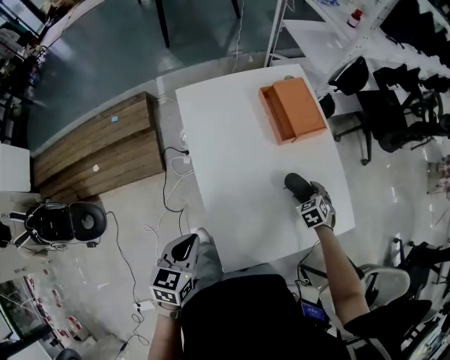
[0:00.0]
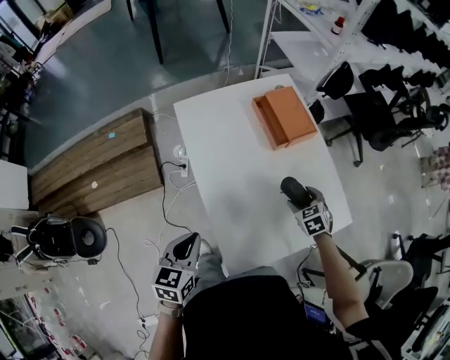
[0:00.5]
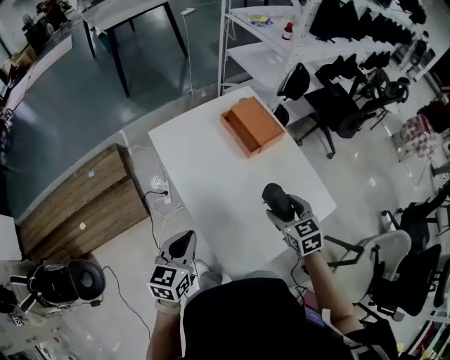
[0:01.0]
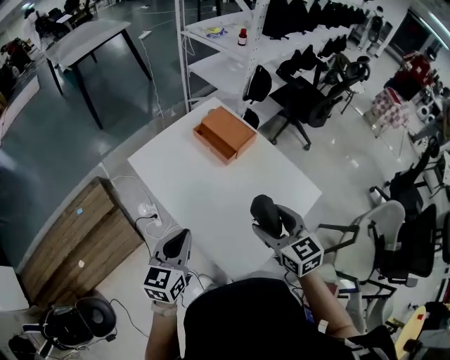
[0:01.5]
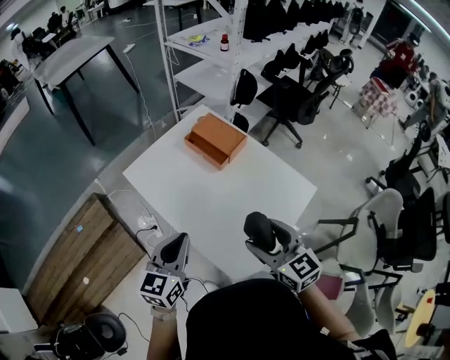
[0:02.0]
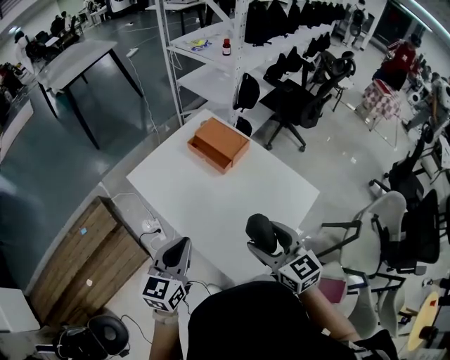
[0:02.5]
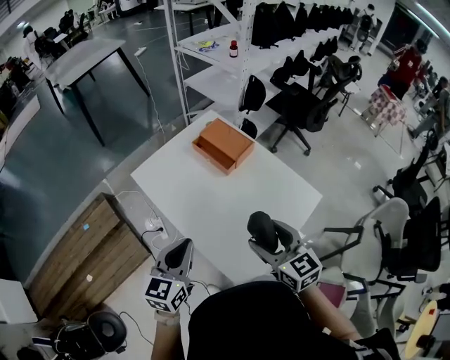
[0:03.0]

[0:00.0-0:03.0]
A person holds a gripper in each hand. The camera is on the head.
0:00.0 to 0:01.5: The right gripper moves upward, backward and to the left, about 35 cm, and angles its fingers upward, by about 40 degrees, while the left gripper shifts some 10 cm upward and forward, and swivels some 30 degrees.
0:01.5 to 0:03.0: There are only small adjustments of the grippers.

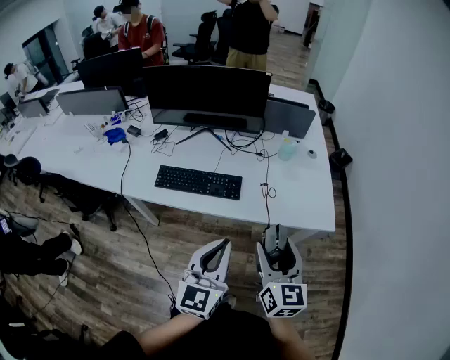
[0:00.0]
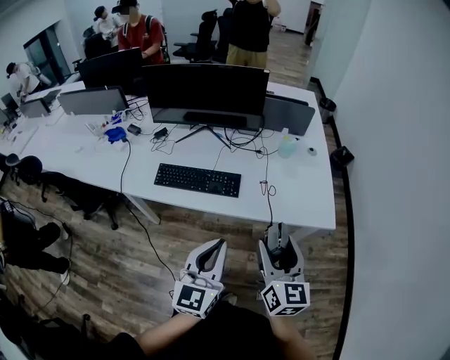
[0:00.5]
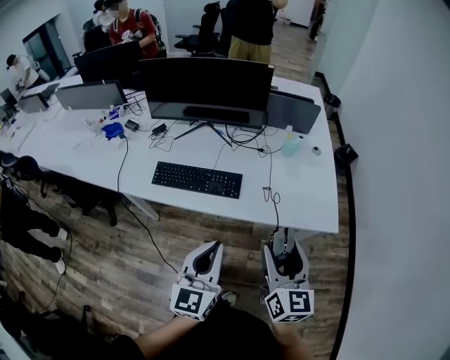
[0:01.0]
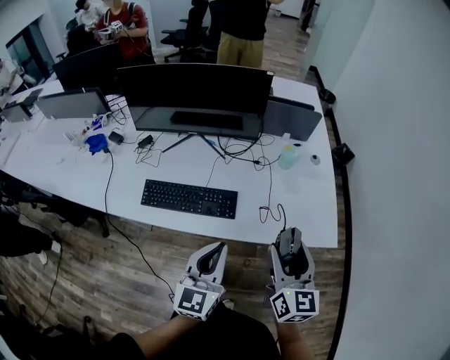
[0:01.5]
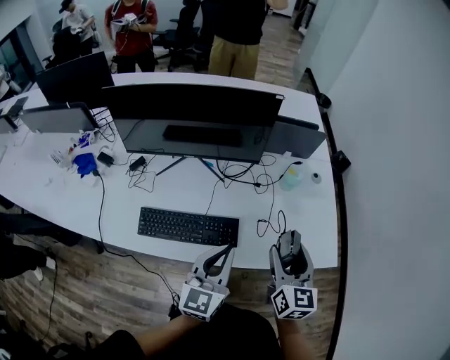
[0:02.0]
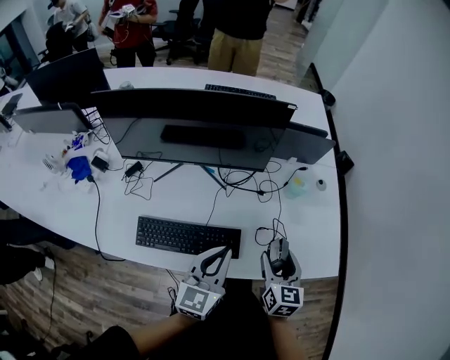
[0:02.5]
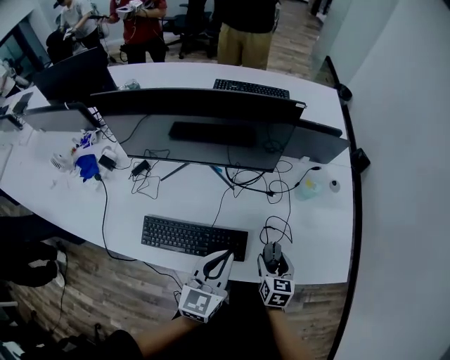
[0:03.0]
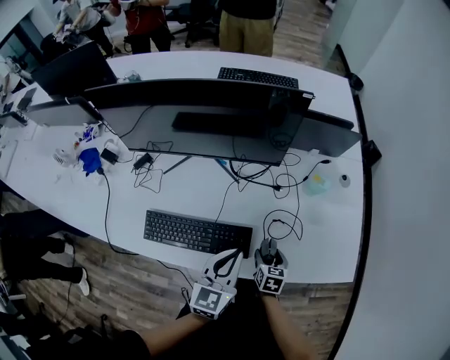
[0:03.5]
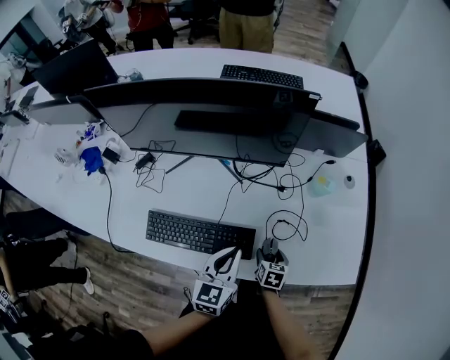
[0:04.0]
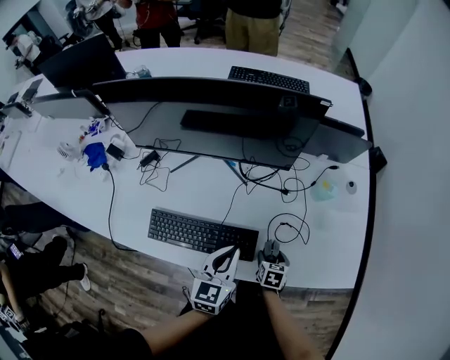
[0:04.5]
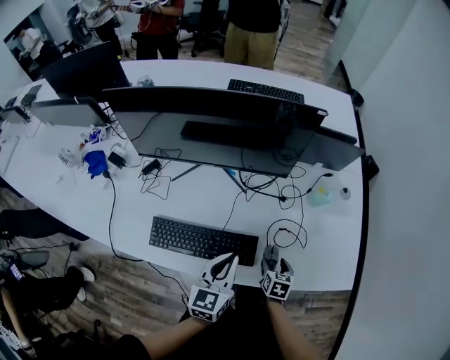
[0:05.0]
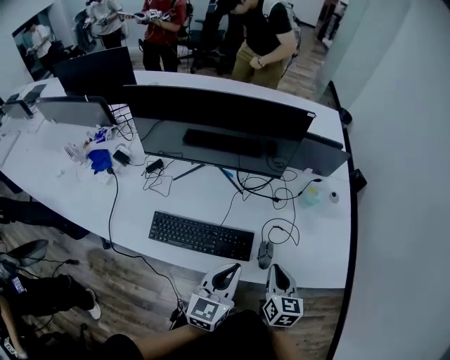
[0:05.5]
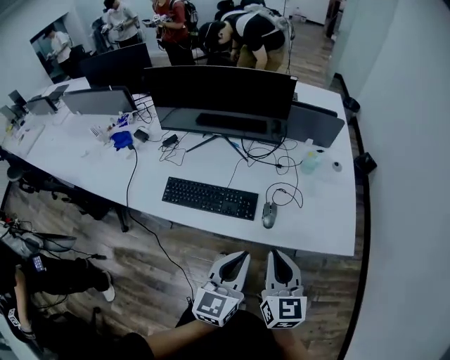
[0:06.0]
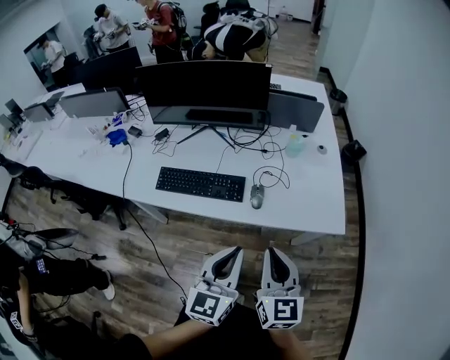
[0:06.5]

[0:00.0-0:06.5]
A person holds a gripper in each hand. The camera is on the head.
0:00.0 to 0:02.0: Both grippers move forward, about 25 cm.
0:02.0 to 0:04.5: The right gripper is displaced downward by roughly 35 cm, and points its fingers about 50 degrees further downward, while the left gripper is displaced downward and forward by about 15 cm.
0:04.5 to 0:06.5: The right gripper shifts approximately 50 cm upward and backward, points its fingers approximately 50 degrees further upward, and closes up; the left gripper travels backward and upward by some 35 cm.

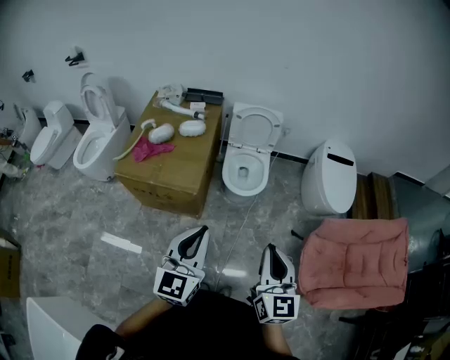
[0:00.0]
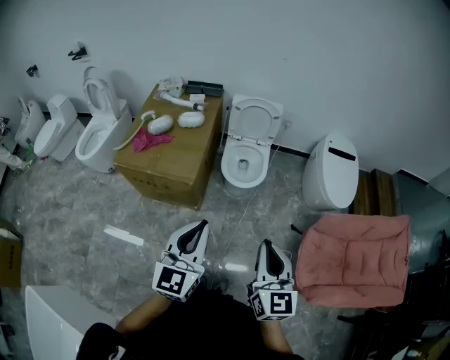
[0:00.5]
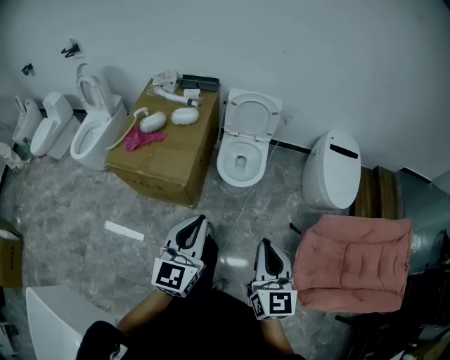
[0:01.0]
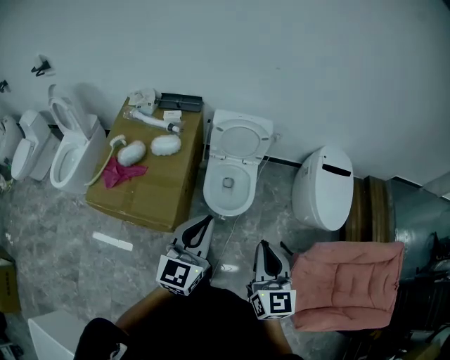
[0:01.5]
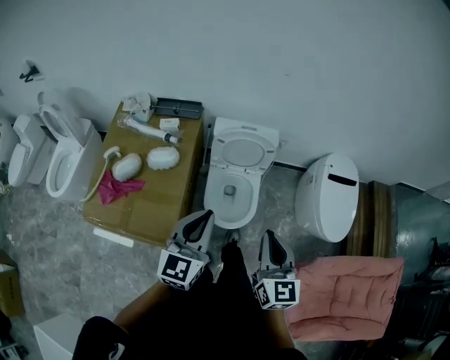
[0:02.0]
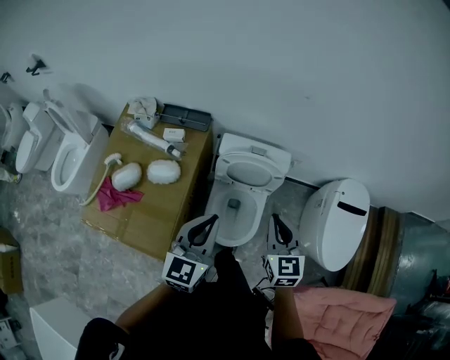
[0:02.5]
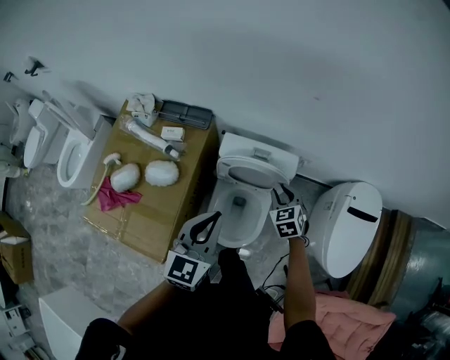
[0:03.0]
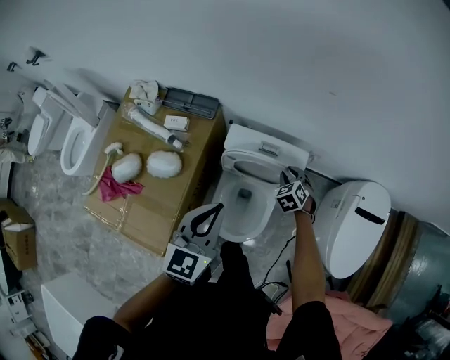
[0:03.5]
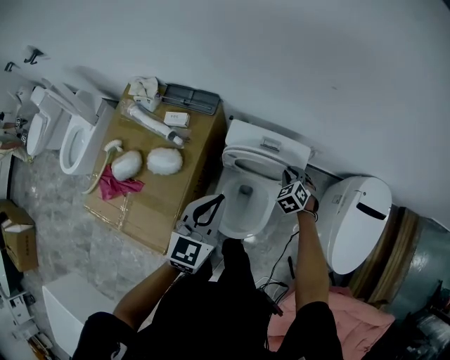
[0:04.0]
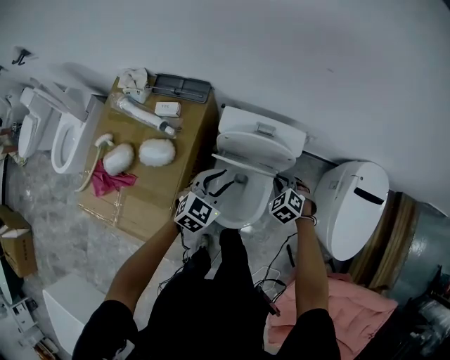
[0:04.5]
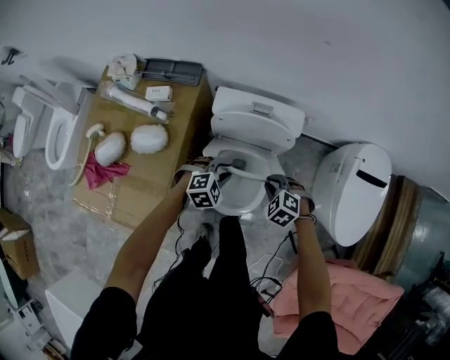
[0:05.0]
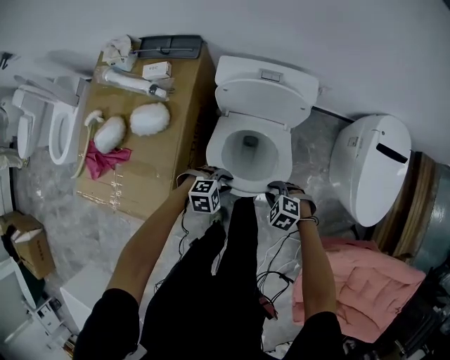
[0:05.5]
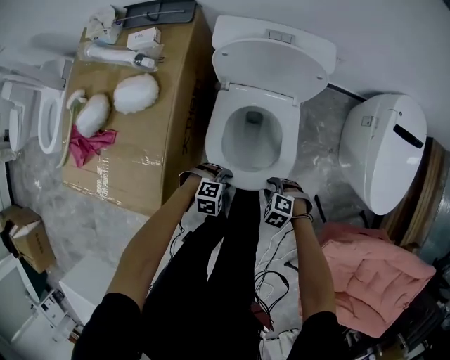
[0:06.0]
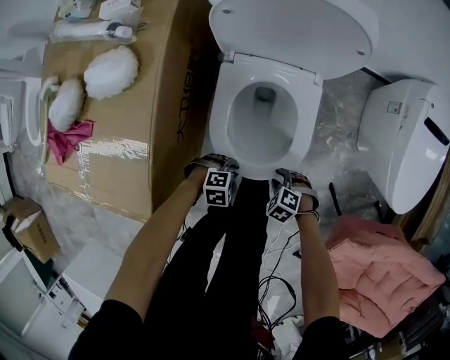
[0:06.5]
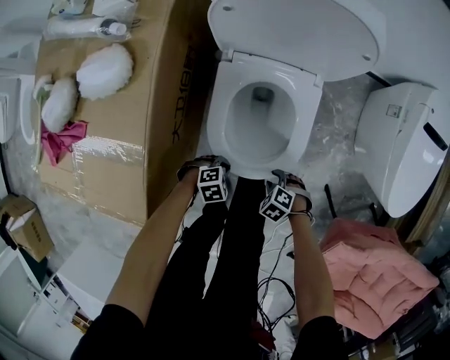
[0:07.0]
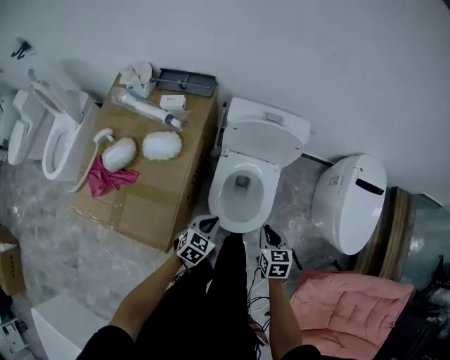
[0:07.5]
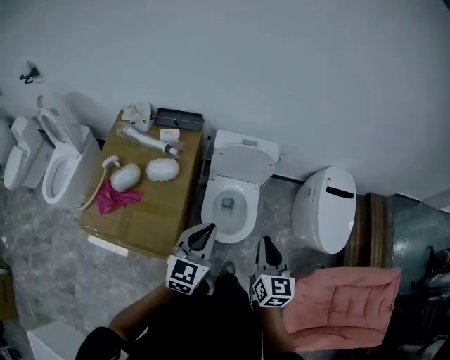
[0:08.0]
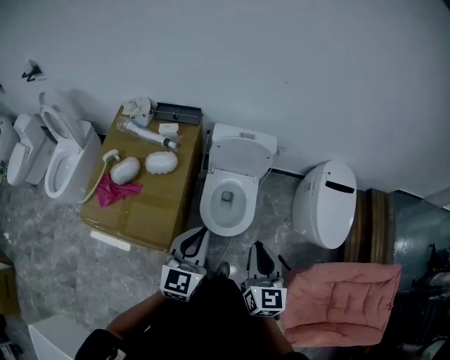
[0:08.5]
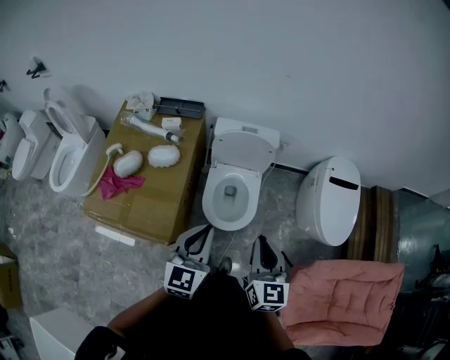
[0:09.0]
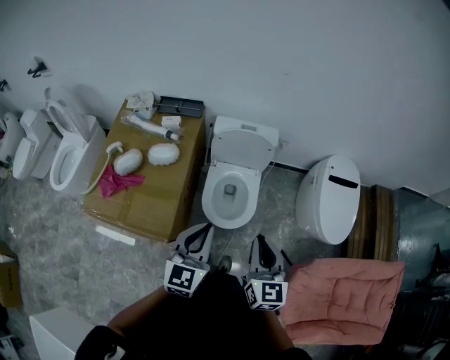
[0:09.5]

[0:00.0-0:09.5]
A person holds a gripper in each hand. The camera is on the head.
0:00.0 to 0:02.0: Both grippers are carried forward, about 40 cm.
0:02.0 to 0:04.0: The left gripper shifts approximately 30 cm forward and downward. The right gripper shifts some 50 cm forward and downward, and tips its fingers downward by approximately 50 degrees.
0:04.0 to 0:05.5: The left gripper goes approximately 35 cm downward, tilts its fingers roughly 40 degrees downward, and opens; the right gripper changes place by about 35 cm, and rotates some 30 degrees.
0:05.5 to 0:07.5: The right gripper moves some 30 cm downward and comes back, and twists approximately 60 degrees clockwise, seen from behind. Meanwhile the left gripper moves roughly 30 cm downward and comes back, turns by some 50 degrees, and closes its fingers.
0:07.5 to 0:09.5: The left gripper travels upward by about 35 cm, and points its fingers approximately 30 degrees further upward. Meanwhile the right gripper shifts about 35 cm upward and backward, and tips its fingers upward by roughly 30 degrees.

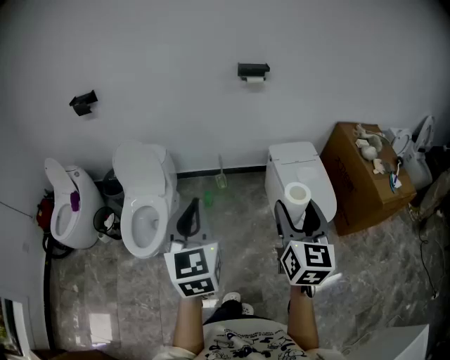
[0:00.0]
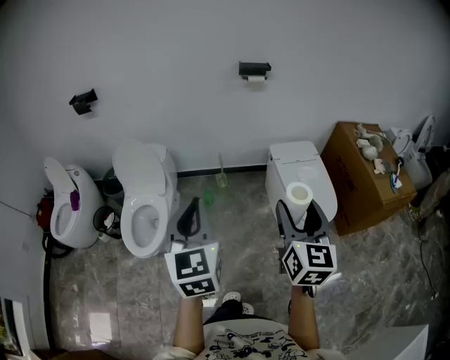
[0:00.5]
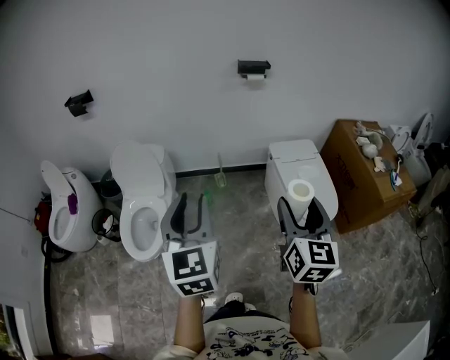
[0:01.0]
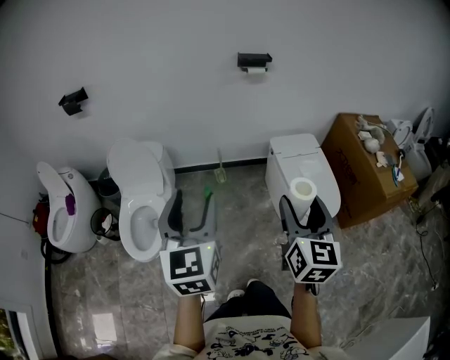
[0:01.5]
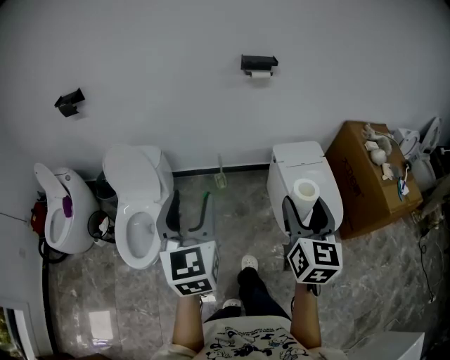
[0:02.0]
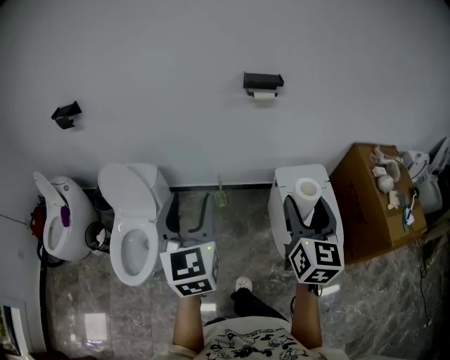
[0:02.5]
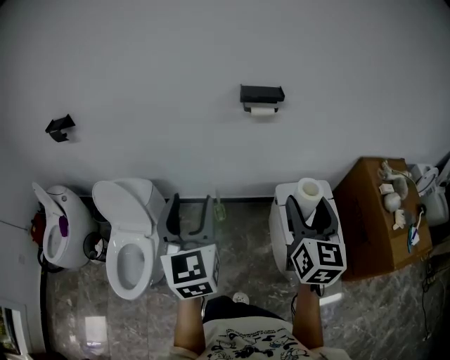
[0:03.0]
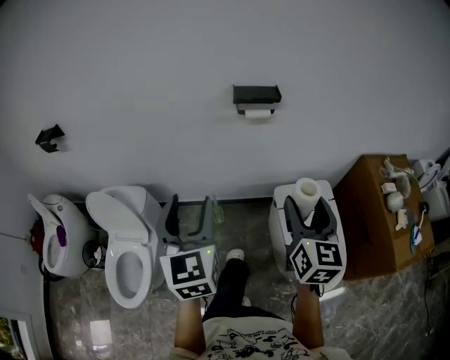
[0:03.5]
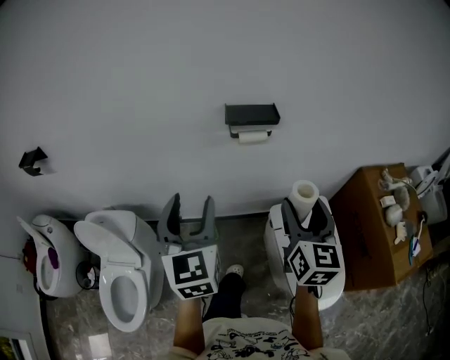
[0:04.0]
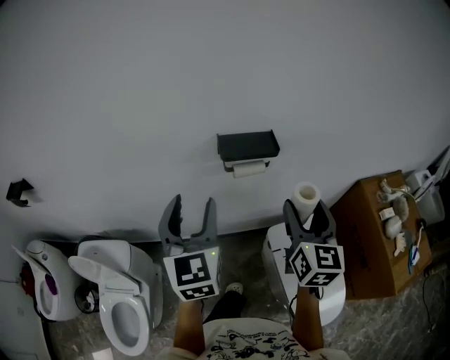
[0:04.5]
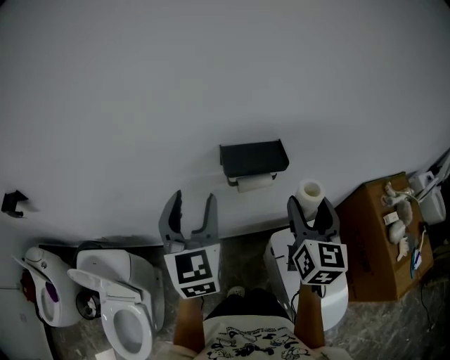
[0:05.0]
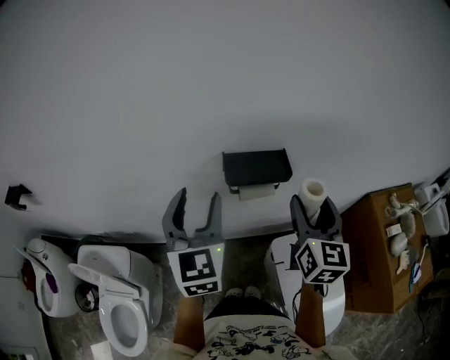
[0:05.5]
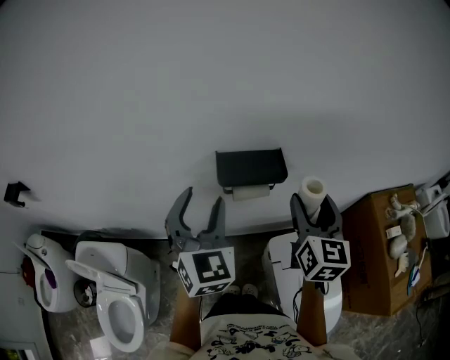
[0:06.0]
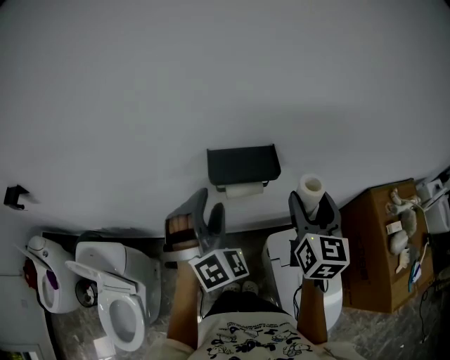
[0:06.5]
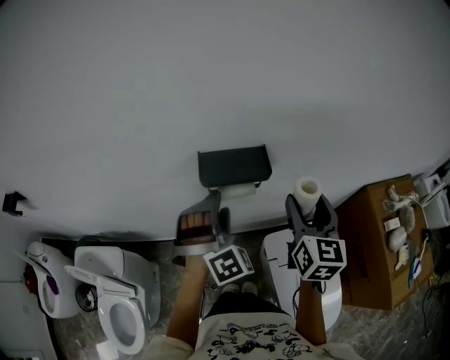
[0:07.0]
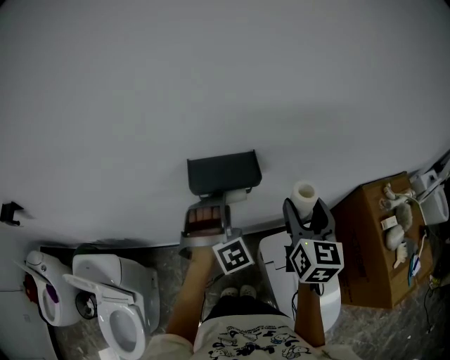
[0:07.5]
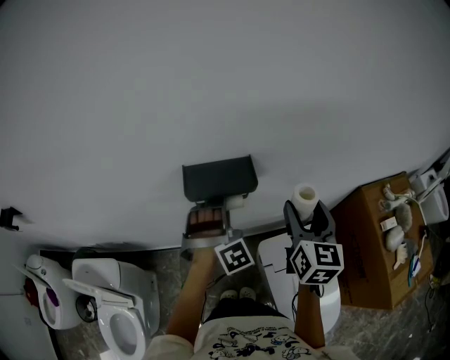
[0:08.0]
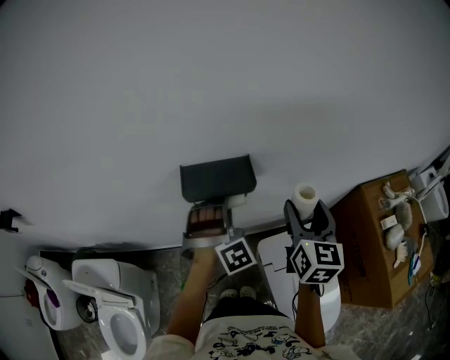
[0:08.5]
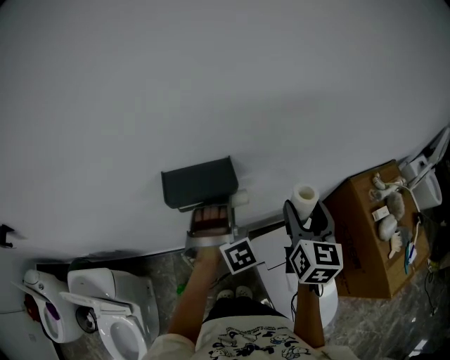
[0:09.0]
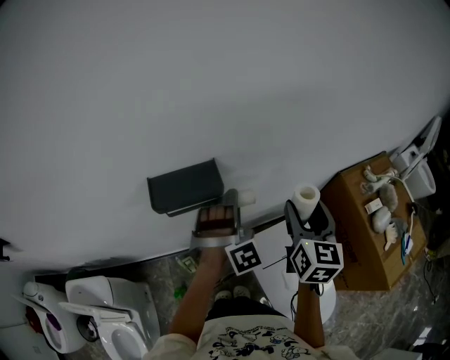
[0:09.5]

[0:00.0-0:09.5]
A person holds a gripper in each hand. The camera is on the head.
0:00.0 to 0:02.0: The grippers both shift forward by about 15 cm. The left gripper opens.
0:02.0 to 0:04.0: The pair of grippers is taken forward, some 40 cm.
0:04.0 to 0:05.5: The grippers both shift forward by about 20 cm.
0:05.5 to 0:07.5: The left gripper travels to the right and downward by approximately 20 cm, and rotates around the line of its fingers by about 70 degrees, clockwise from behind. The right gripper heads to the right, covering about 5 cm.
0:07.5 to 0:09.5: Both grippers travel together to the right, about 10 cm.
